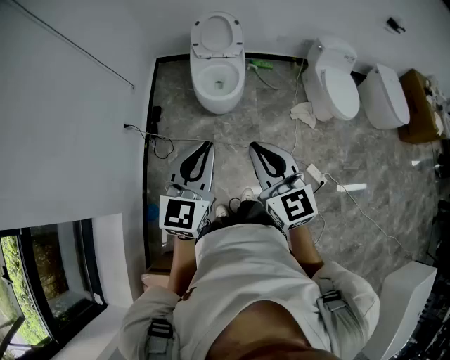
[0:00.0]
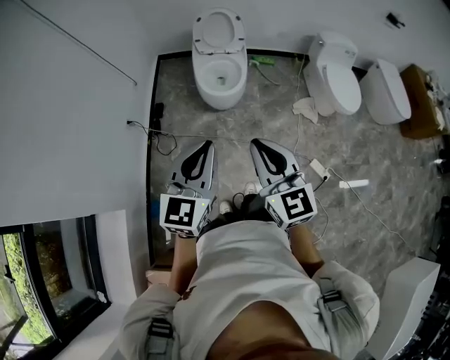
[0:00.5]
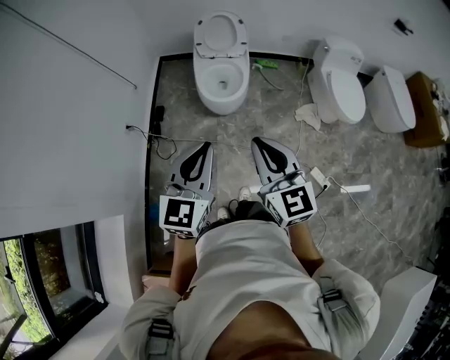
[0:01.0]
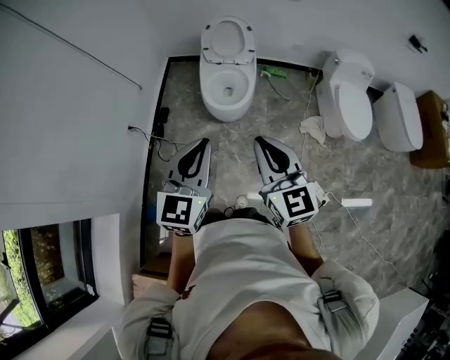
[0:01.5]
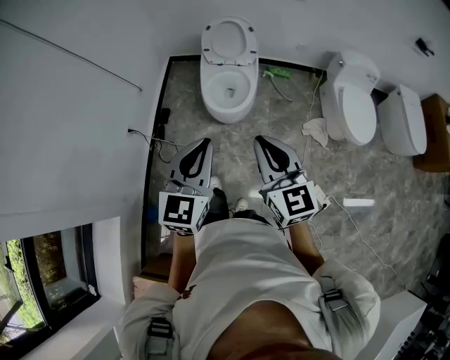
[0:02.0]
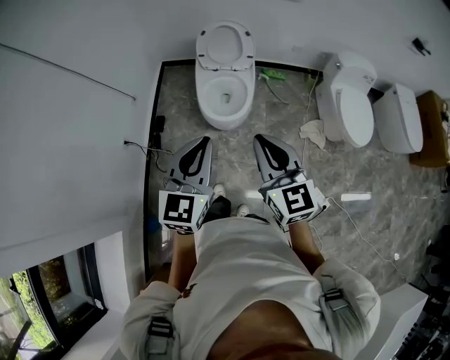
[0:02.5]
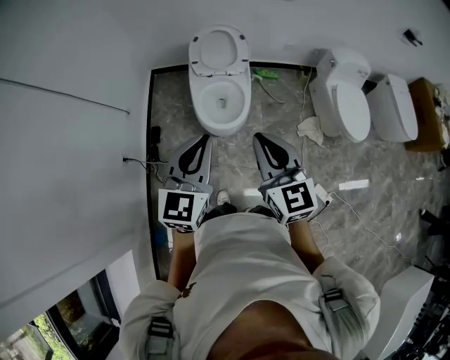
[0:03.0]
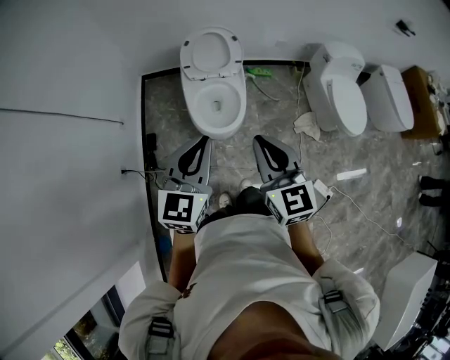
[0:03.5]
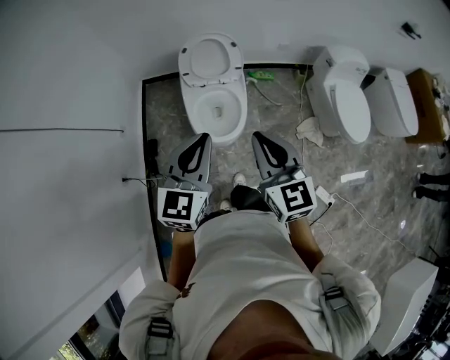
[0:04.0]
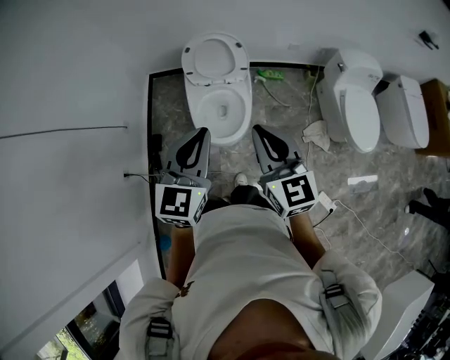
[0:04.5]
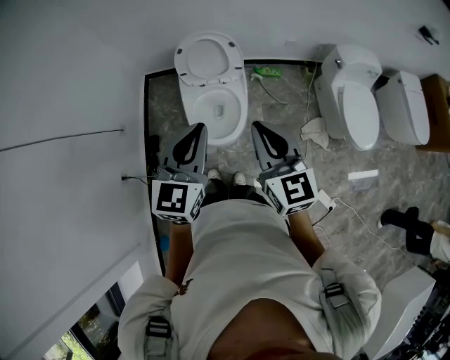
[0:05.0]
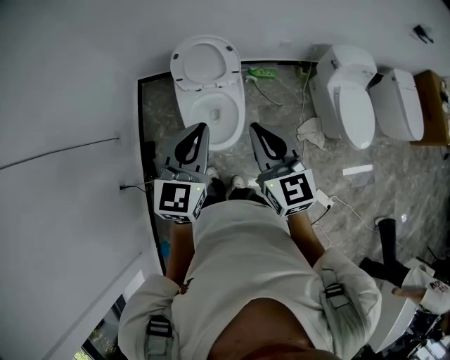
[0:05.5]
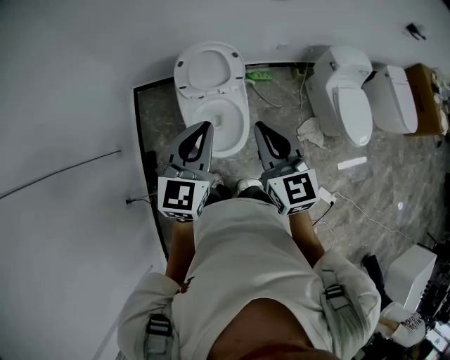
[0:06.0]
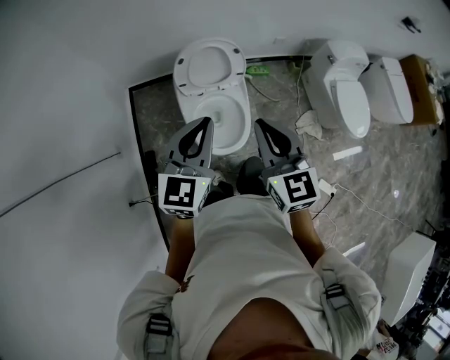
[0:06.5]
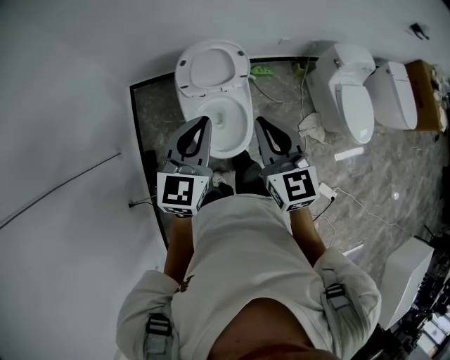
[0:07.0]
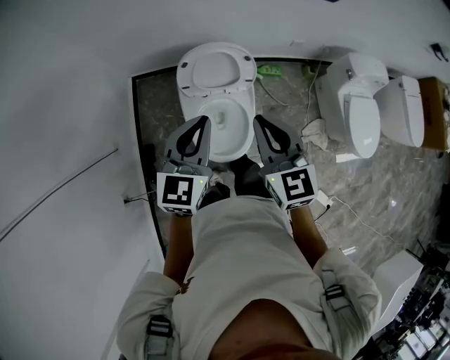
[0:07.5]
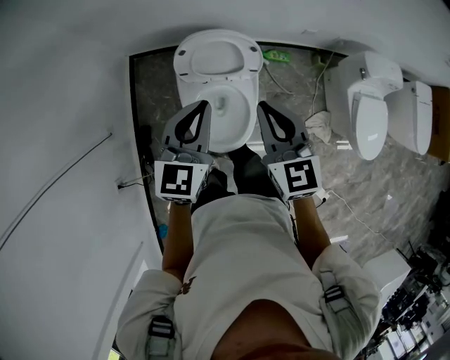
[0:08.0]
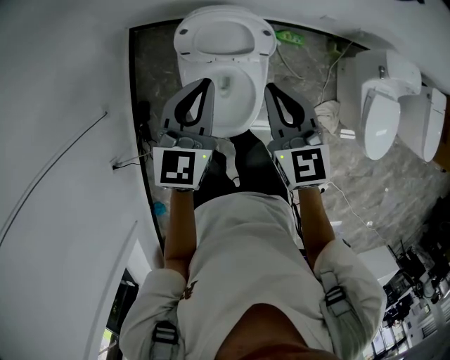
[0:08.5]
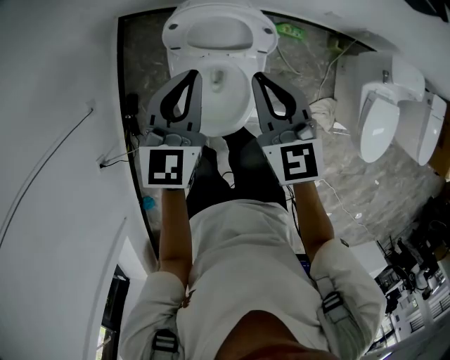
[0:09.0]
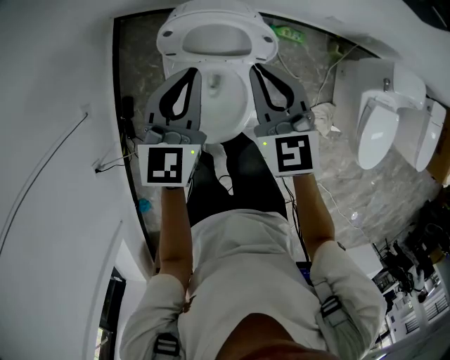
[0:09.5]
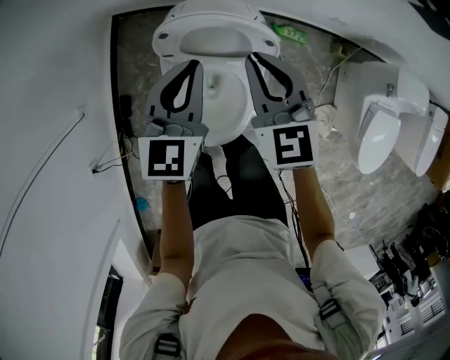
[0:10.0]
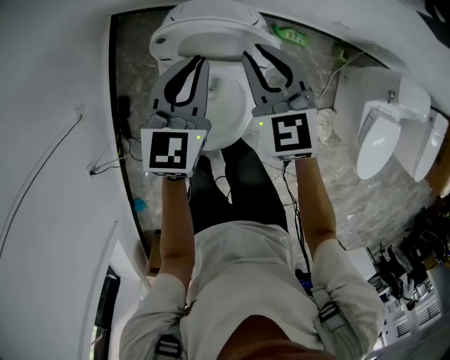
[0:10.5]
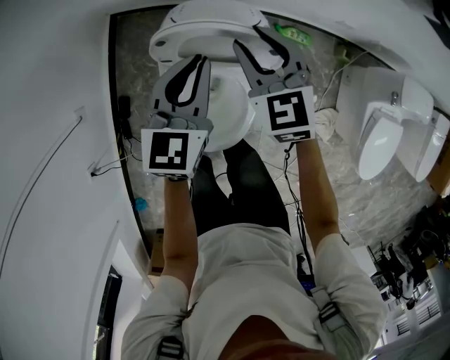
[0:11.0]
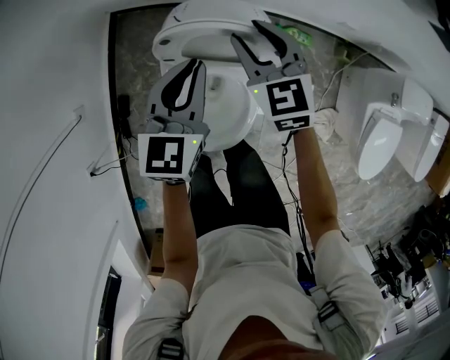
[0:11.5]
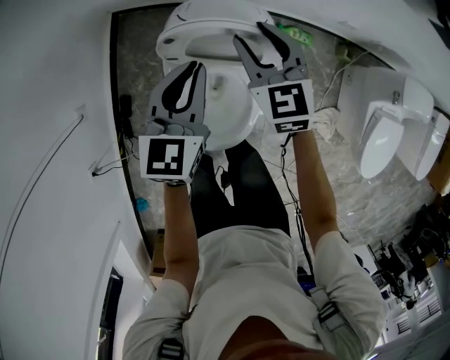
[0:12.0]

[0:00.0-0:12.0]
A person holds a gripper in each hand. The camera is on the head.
0:00.0 to 0:02.0: The two grippers go roughly 20 cm forward and to the right.
0:02.0 to 0:04.0: Both grippers move forward, about 25 cm.
0:04.0 to 0:06.0: The grippers both shift forward by about 20 cm.
0:06.0 to 0:08.0: The right gripper heads forward, covering roughly 20 cm. The left gripper moves forward and downward, roughly 20 cm.
0:08.0 to 0:10.0: The two grippers go about 25 cm forward and downward.
0:10.0 to 0:12.0: The right gripper heads downward and forward, covering roughly 10 cm, and opens up, while the left gripper changes place by some 5 cm.

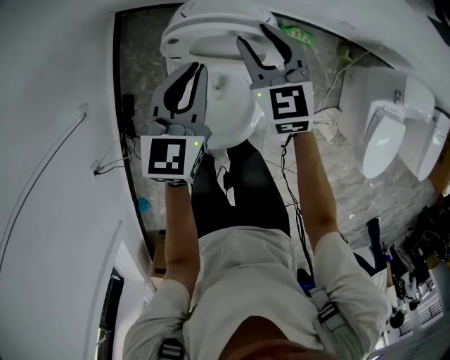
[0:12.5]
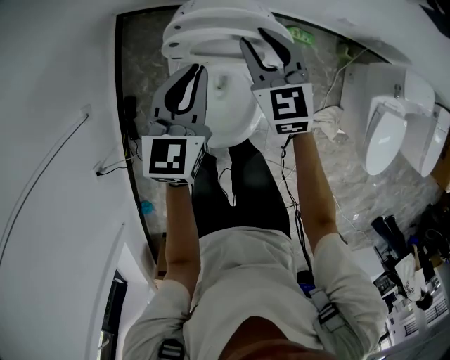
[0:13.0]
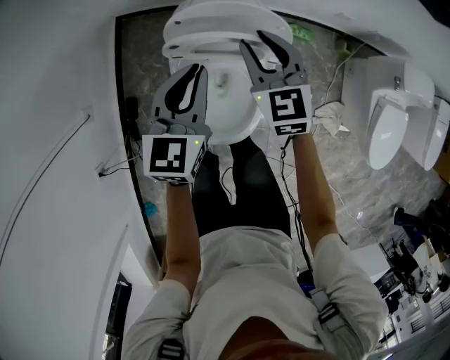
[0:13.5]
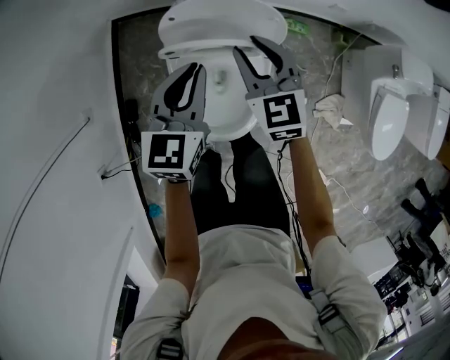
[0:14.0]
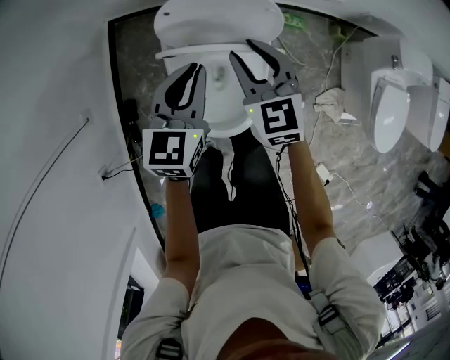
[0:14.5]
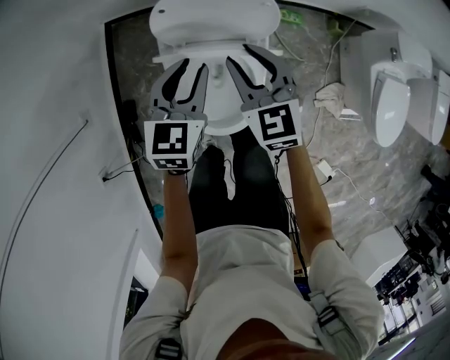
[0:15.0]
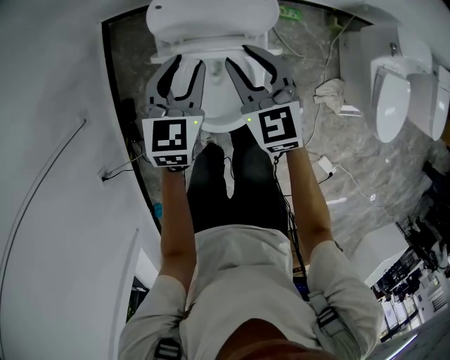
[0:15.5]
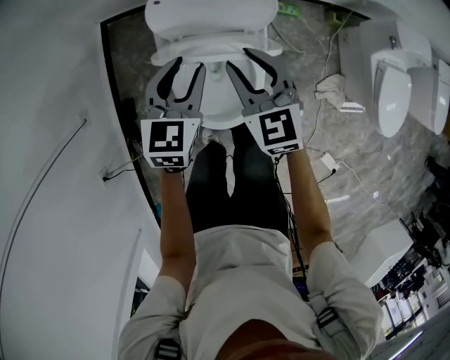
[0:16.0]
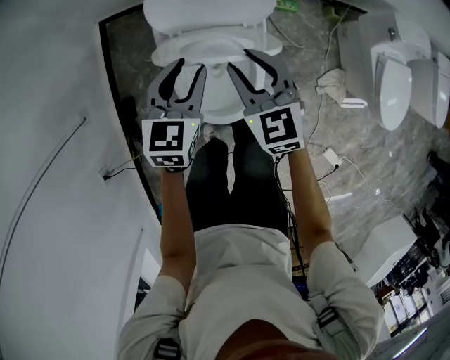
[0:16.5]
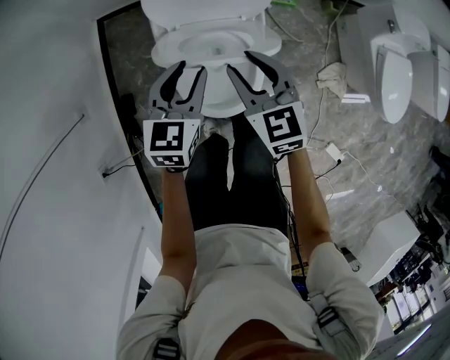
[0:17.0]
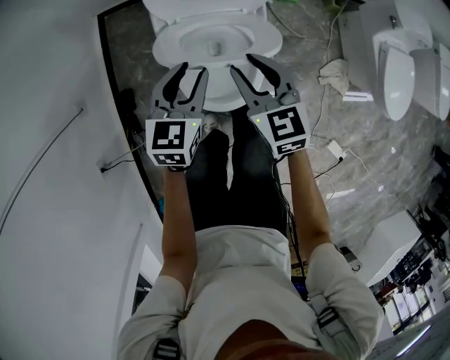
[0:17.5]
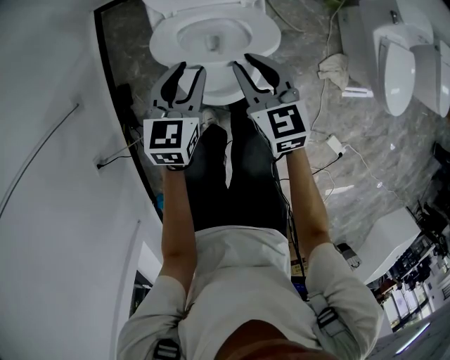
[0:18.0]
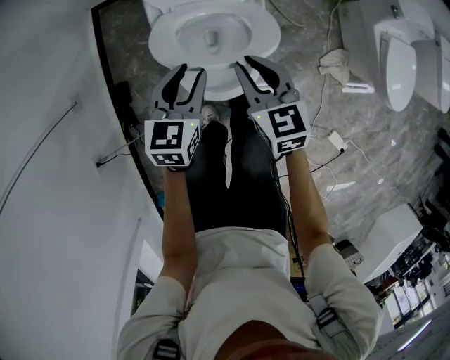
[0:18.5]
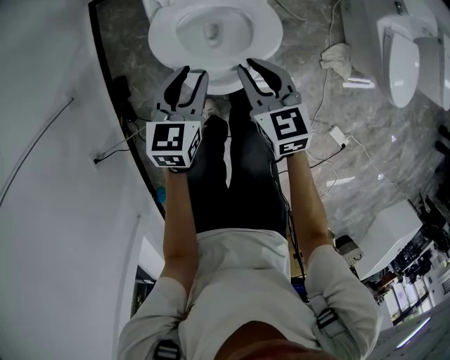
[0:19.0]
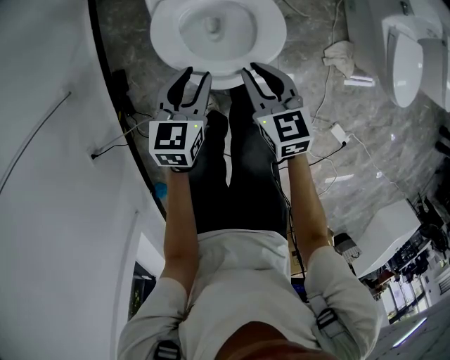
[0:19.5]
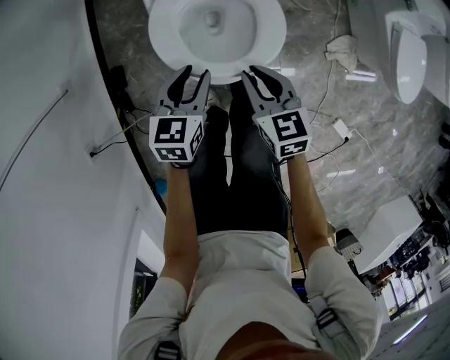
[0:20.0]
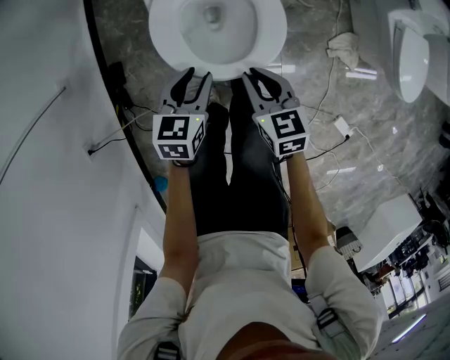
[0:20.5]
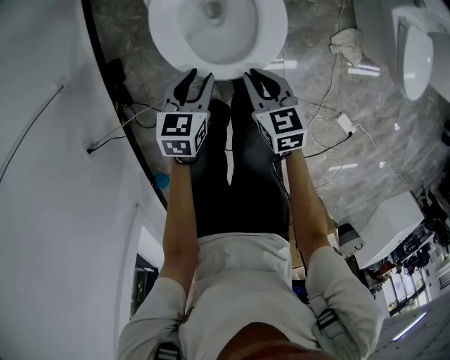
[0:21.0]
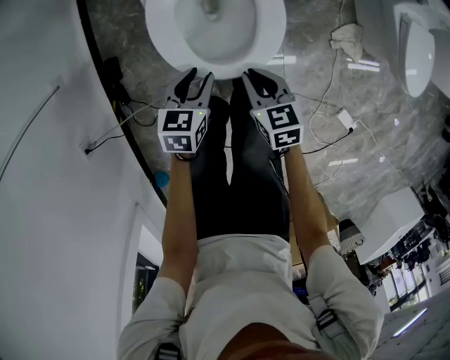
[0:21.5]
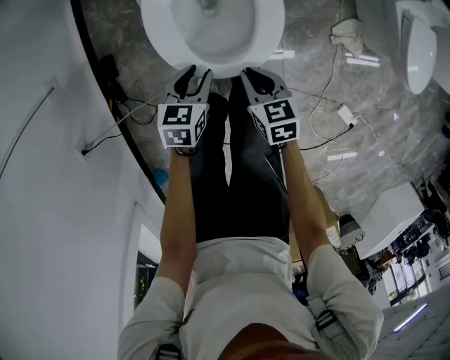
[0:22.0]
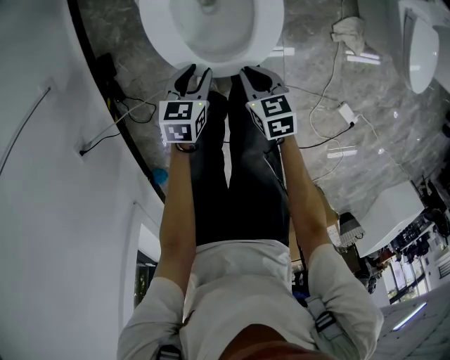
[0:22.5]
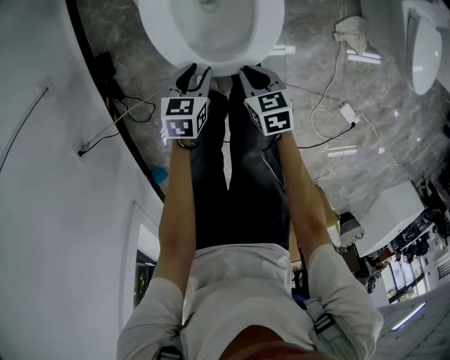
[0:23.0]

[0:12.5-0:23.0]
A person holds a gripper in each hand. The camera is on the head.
0:12.5 to 0:14.5: The grippers both shift backward by some 10 cm.
0:14.5 to 0:16.5: The left gripper shifts about 5 cm backward, and opens, while the right gripper shifts about 10 cm backward.
0:16.5 to 0:19.0: The grippers both shift backward and downward by roughly 15 cm.
0:19.0 to 0:21.0: Both grippers move downward and backward, some 15 cm.
0:21.0 to 0:23.0: Both grippers move downward, some 15 cm.

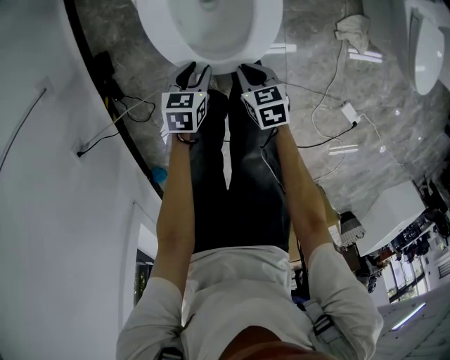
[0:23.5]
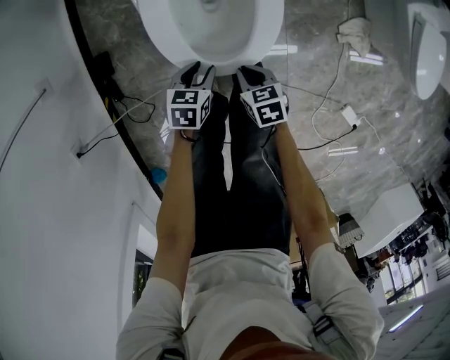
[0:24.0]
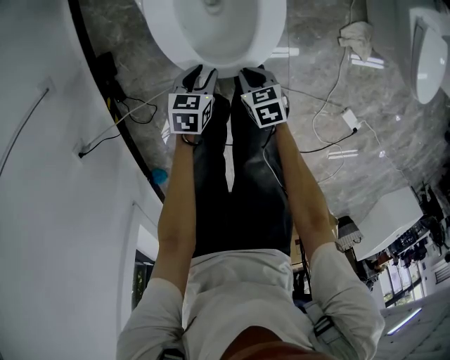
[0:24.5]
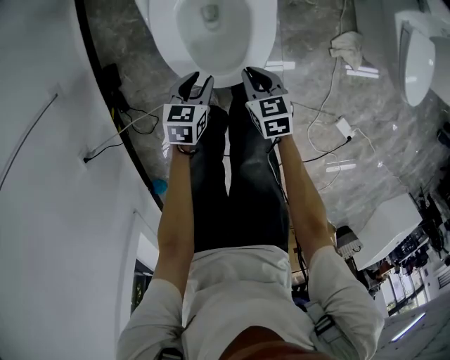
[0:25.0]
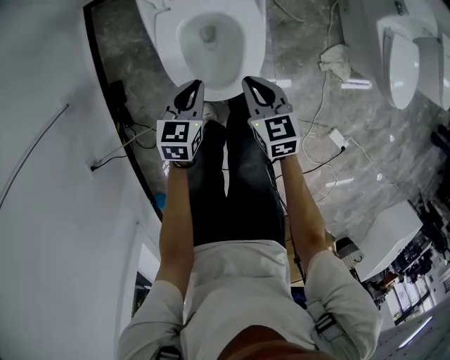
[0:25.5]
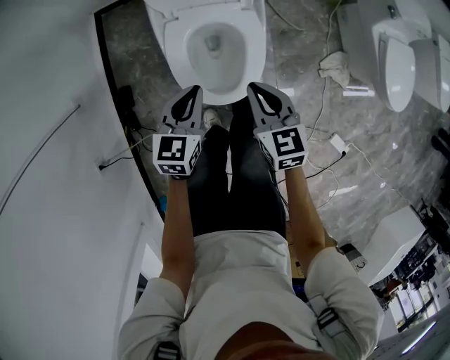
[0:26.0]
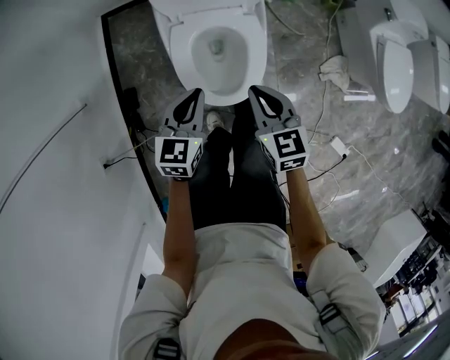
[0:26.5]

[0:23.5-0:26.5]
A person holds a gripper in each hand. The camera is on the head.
0:23.5 to 0:25.0: The right gripper heads upward and forward, covering some 10 cm; the left gripper heads upward, covering about 5 cm.
0:25.0 to 0:26.5: Both grippers travel together upward, about 25 cm. The left gripper turns by roughly 20 degrees, and closes its fingers.

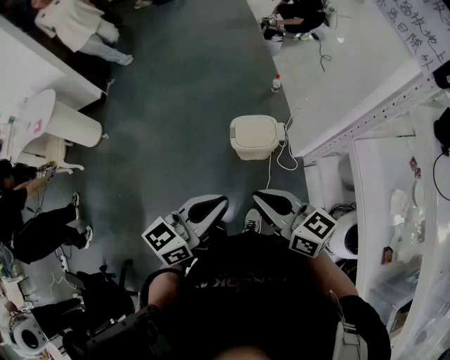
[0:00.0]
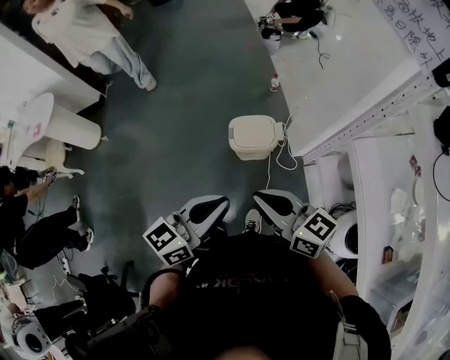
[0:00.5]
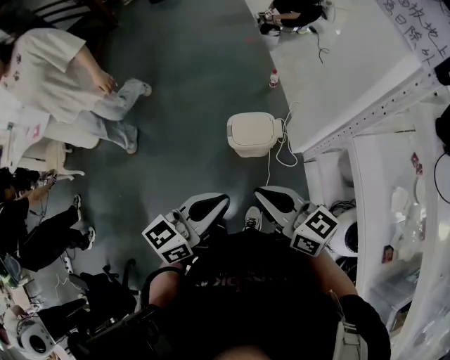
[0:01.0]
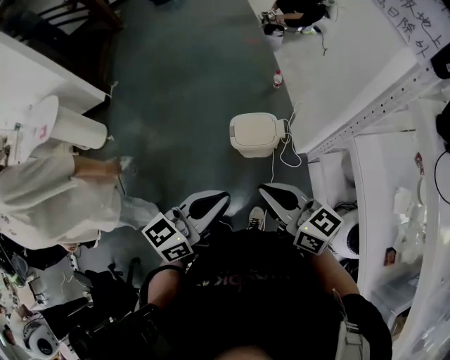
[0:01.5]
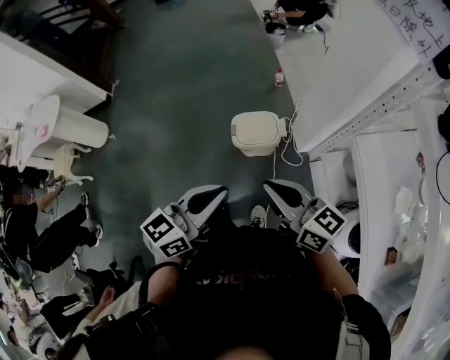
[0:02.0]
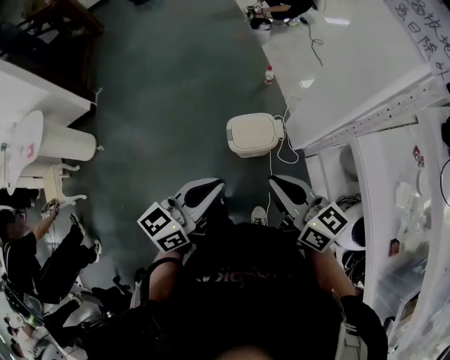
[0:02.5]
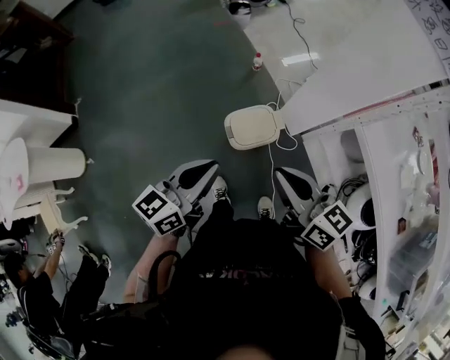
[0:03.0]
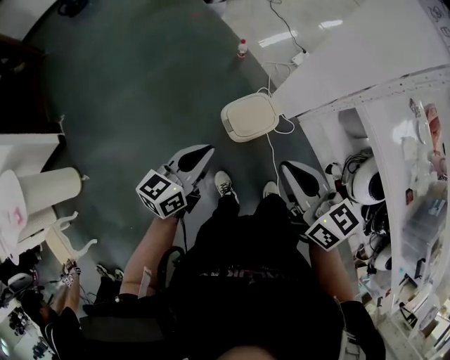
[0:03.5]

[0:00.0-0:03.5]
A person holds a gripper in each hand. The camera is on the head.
0:00.0 to 0:02.0: The left gripper changes place by approximately 5 cm. Meanwhile the right gripper is displaced to the right by approximately 5 cm.
0:02.0 to 0:03.5: The left gripper shifts by some 30 cm; the right gripper moves about 20 cm, and rotates approximately 30 degrees.
